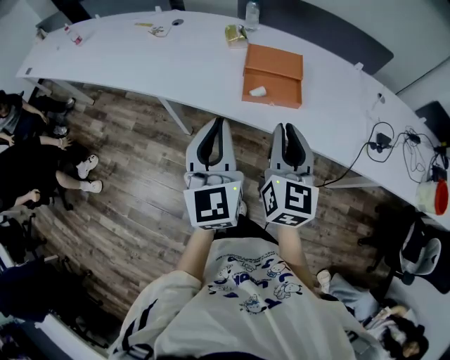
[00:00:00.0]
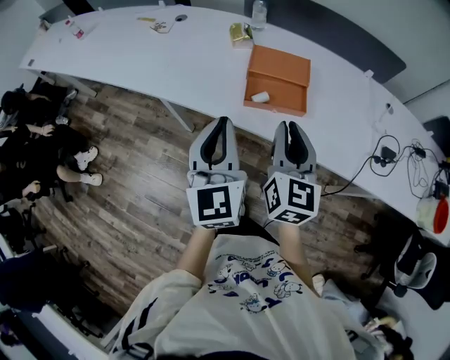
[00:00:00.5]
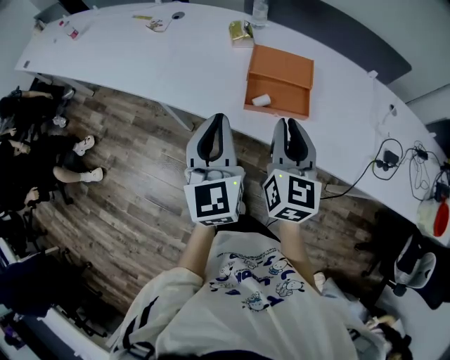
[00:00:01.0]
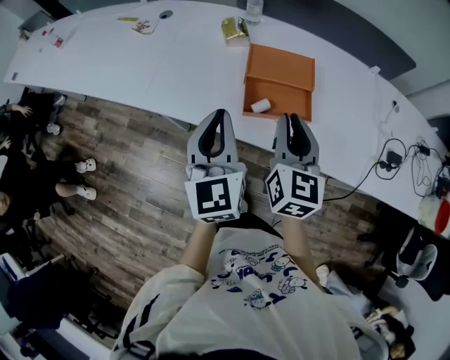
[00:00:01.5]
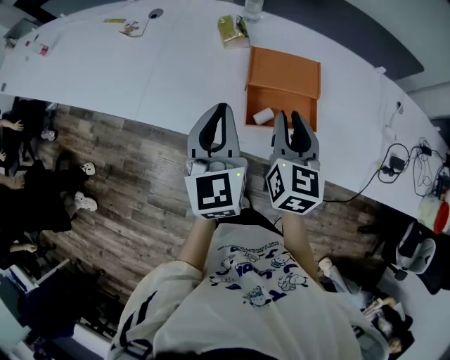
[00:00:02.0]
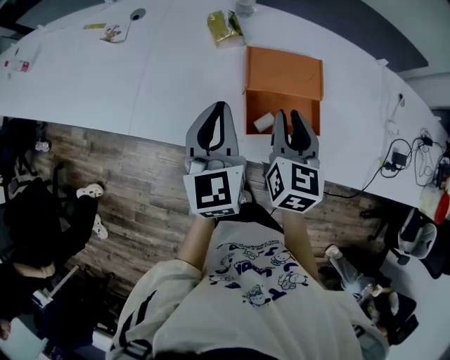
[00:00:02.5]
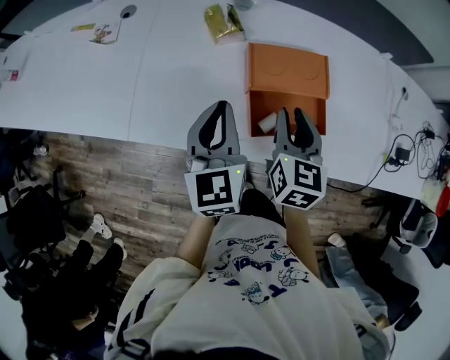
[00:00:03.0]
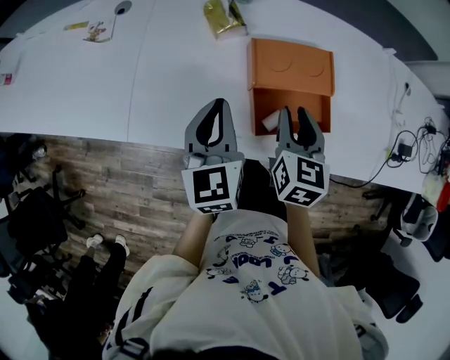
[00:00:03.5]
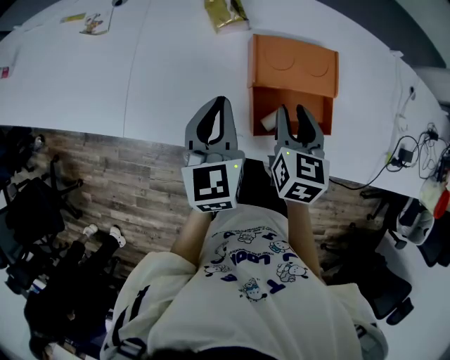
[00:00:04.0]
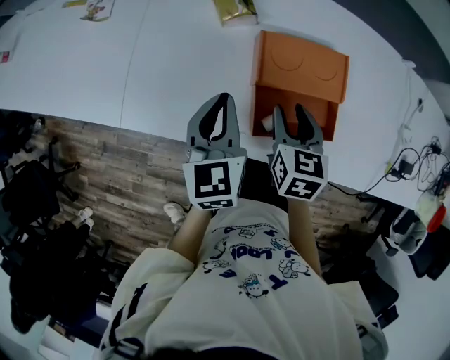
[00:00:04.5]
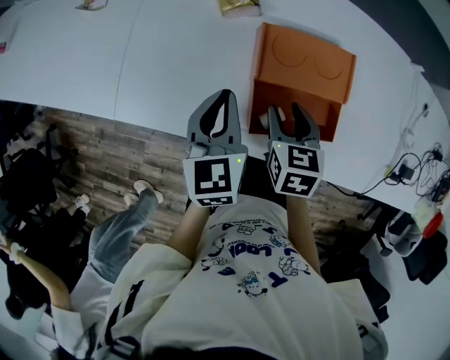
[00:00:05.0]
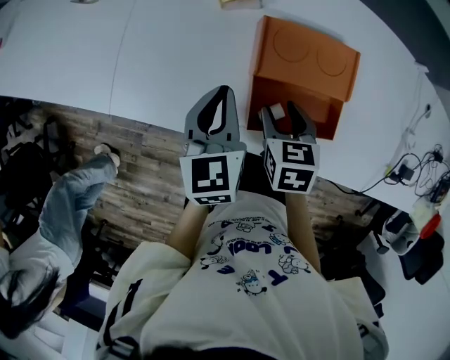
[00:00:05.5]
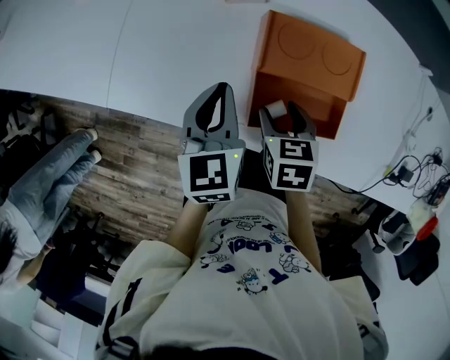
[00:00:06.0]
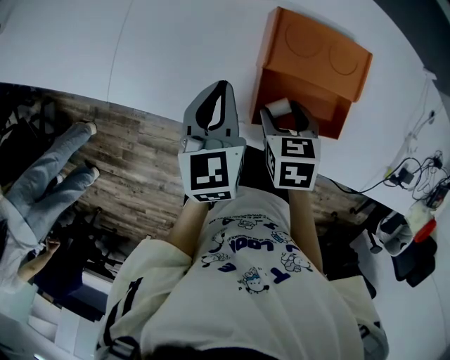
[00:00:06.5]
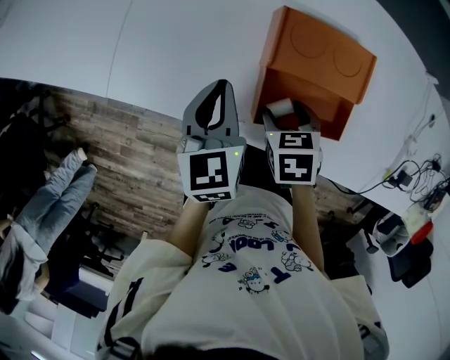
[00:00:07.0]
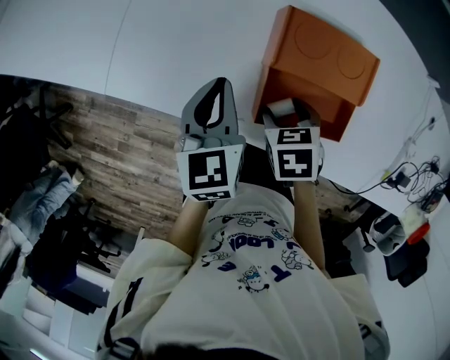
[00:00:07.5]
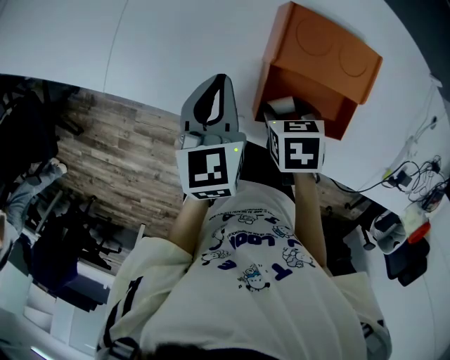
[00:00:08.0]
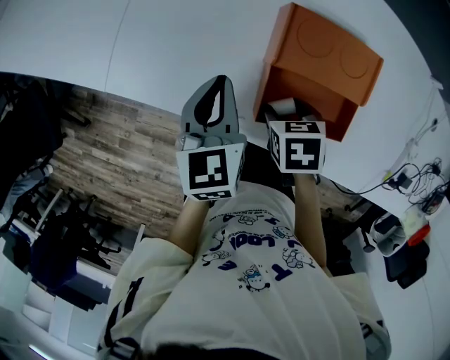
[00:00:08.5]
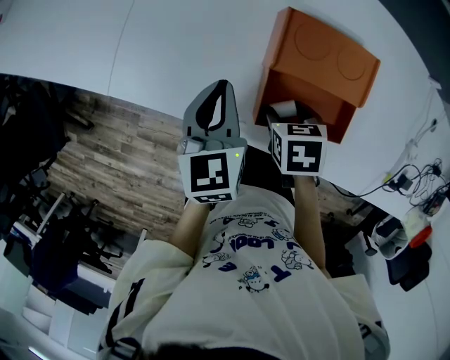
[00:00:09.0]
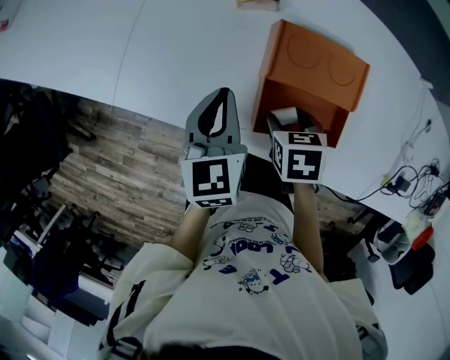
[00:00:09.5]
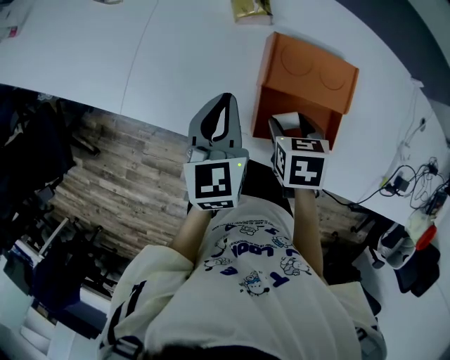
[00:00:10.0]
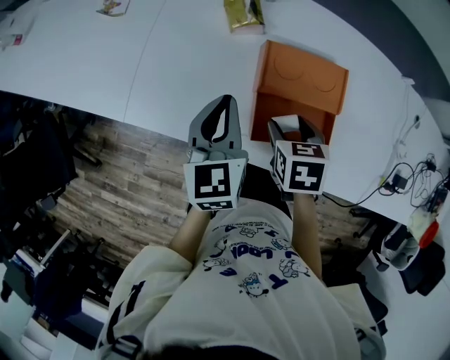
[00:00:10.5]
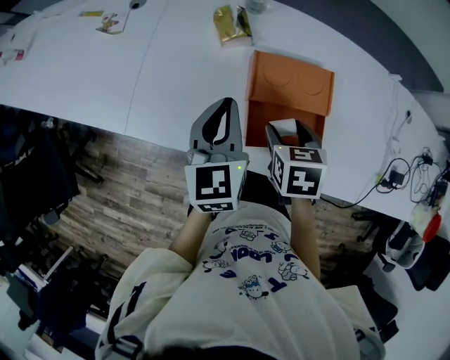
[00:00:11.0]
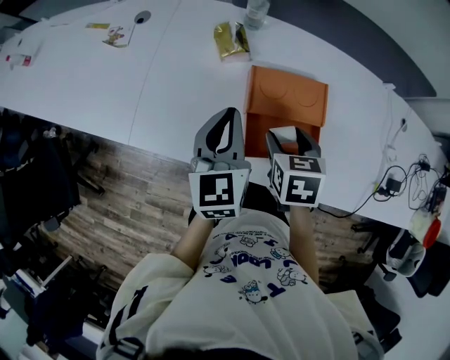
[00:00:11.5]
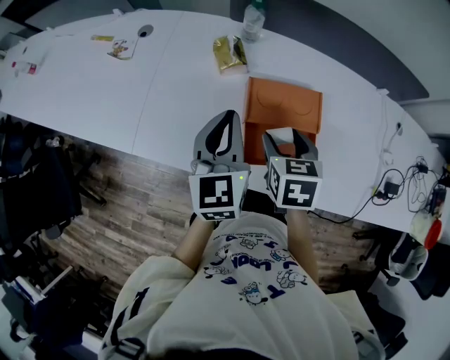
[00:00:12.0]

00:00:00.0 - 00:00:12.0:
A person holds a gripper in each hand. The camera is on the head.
00:00:00.0 - 00:00:02.0: Both grippers move forward, some 25 cm.
00:00:02.0 - 00:00:04.0: Both grippers travel together downward and forward, about 15 cm.
00:00:04.0 - 00:00:06.0: The left gripper goes about 5 cm downward, while the right gripper heads downward, covering roughly 10 cm, changes its angle by about 30 degrees, and opens.
00:00:06.0 - 00:00:08.0: The grippers move only a little.
00:00:08.0 - 00:00:10.0: The two grippers go about 5 cm upward.
00:00:10.0 - 00:00:12.0: Both grippers travel together upward, some 10 cm.

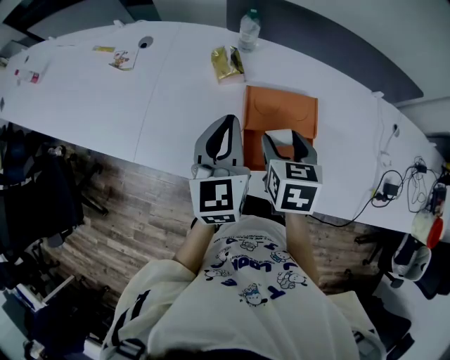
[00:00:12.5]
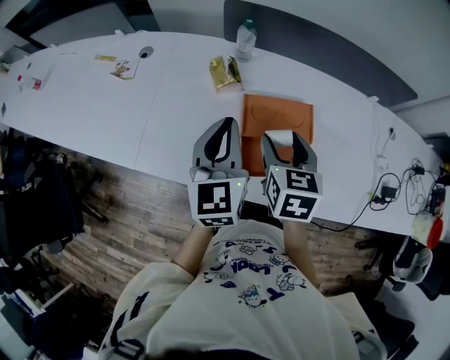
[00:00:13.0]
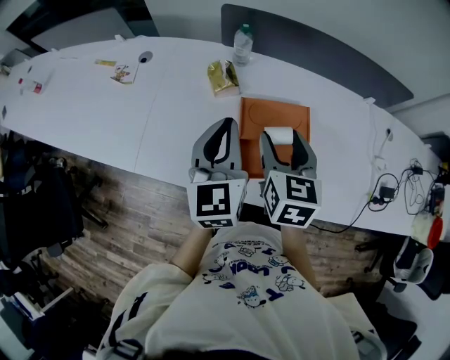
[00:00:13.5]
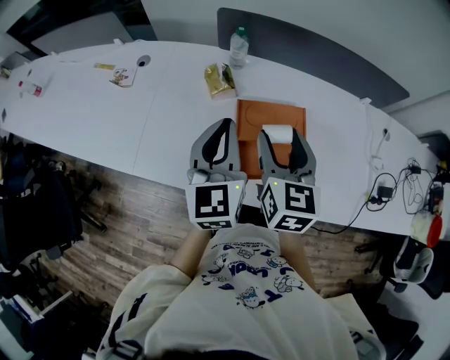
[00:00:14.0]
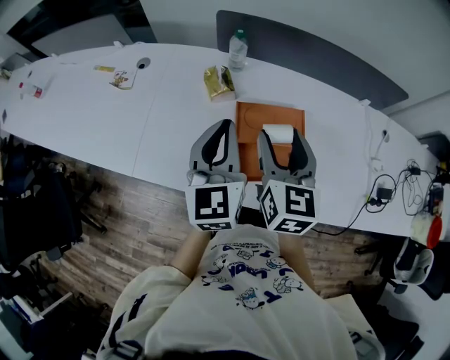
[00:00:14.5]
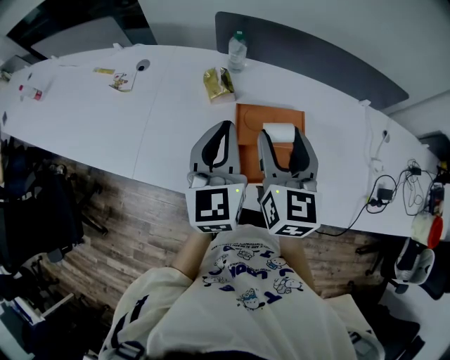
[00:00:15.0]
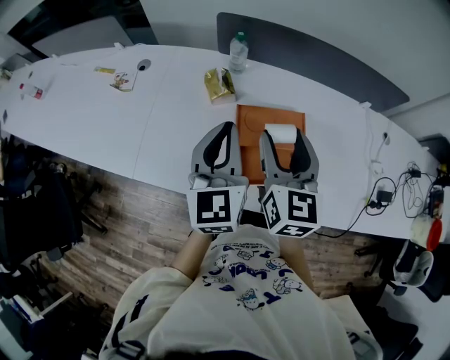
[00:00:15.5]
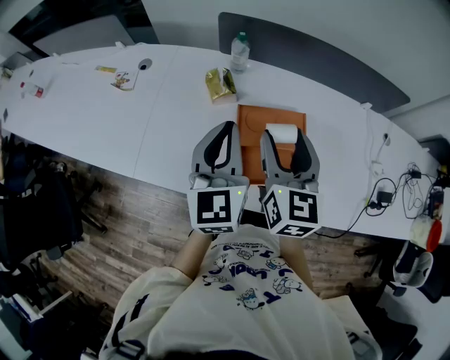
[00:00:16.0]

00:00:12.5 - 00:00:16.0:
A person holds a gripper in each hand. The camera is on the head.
00:00:12.5 - 00:00:14.5: The right gripper shifts about 10 cm upward, and swivels about 30 degrees, while the left gripper moves upward, some 5 cm.
00:00:14.5 - 00:00:16.0: The two grippers keep their place.

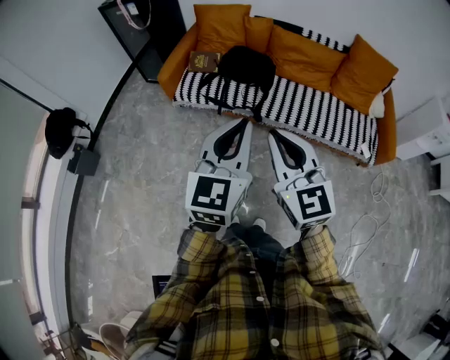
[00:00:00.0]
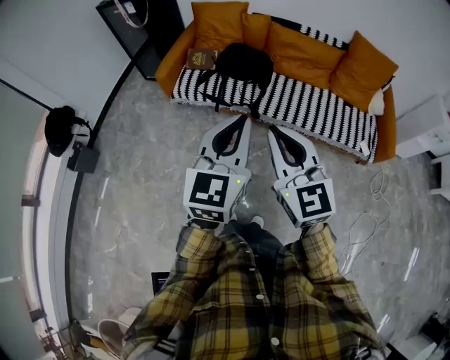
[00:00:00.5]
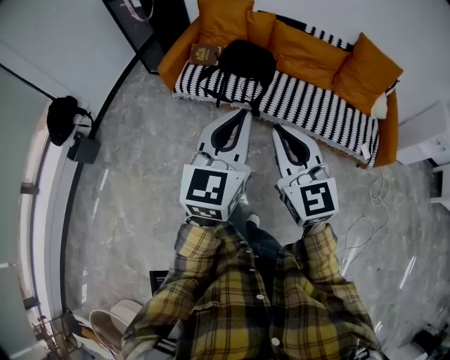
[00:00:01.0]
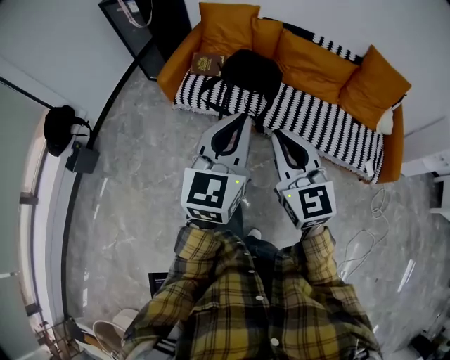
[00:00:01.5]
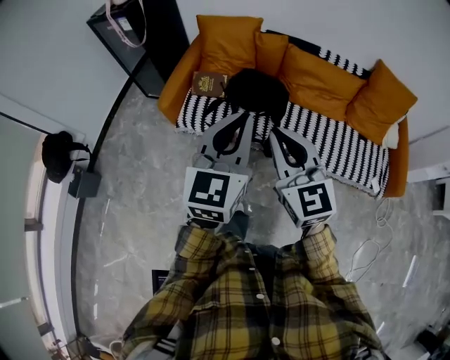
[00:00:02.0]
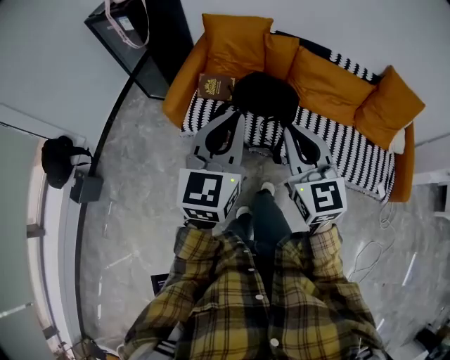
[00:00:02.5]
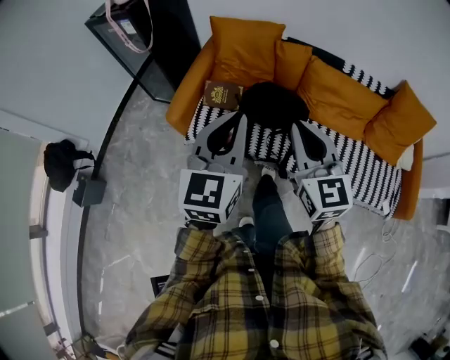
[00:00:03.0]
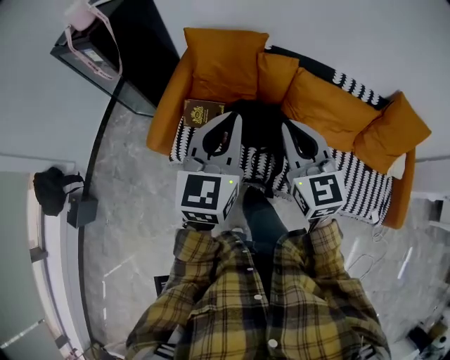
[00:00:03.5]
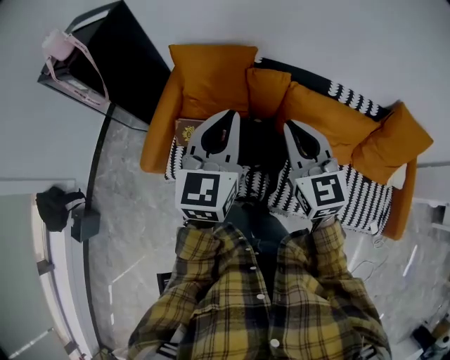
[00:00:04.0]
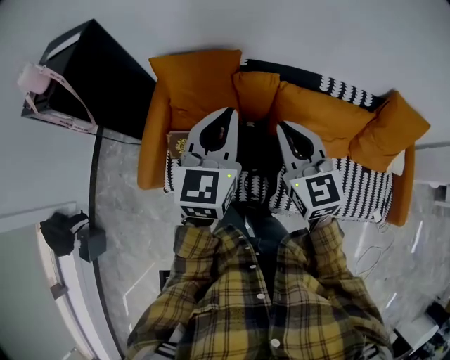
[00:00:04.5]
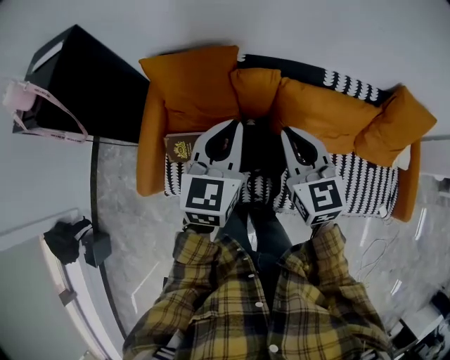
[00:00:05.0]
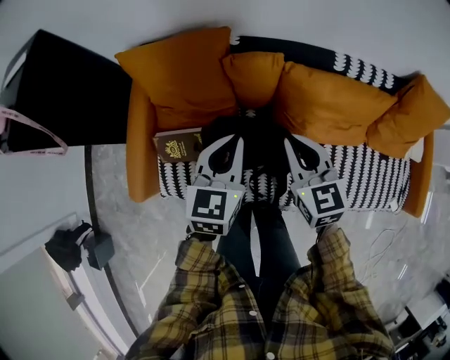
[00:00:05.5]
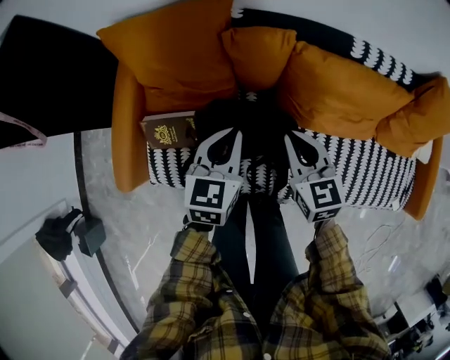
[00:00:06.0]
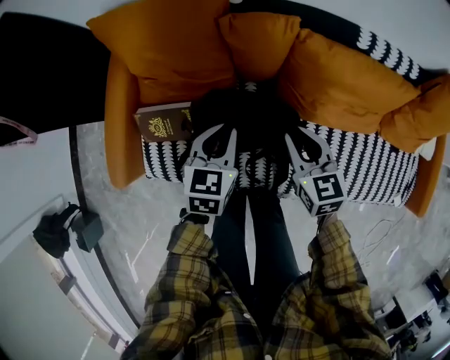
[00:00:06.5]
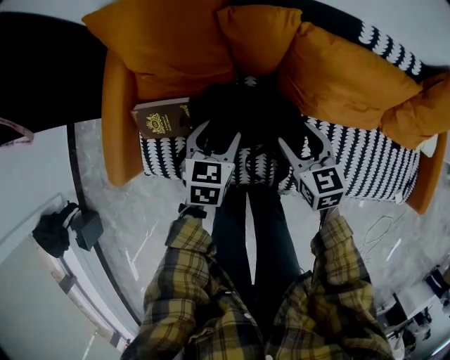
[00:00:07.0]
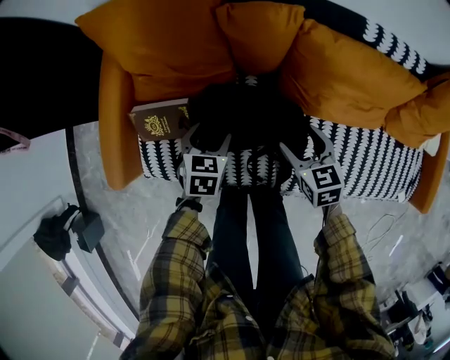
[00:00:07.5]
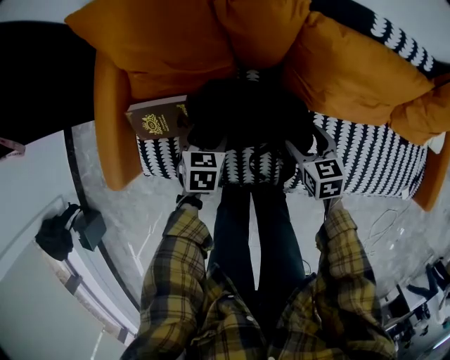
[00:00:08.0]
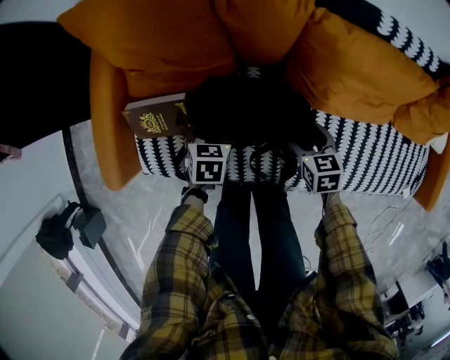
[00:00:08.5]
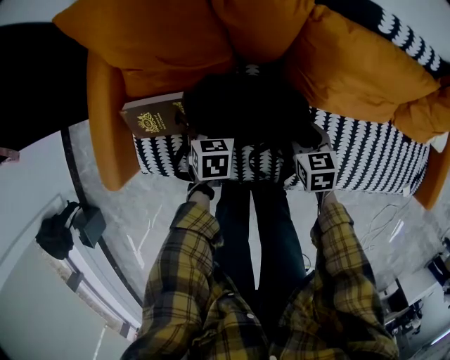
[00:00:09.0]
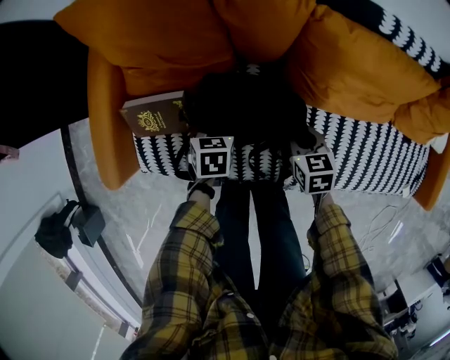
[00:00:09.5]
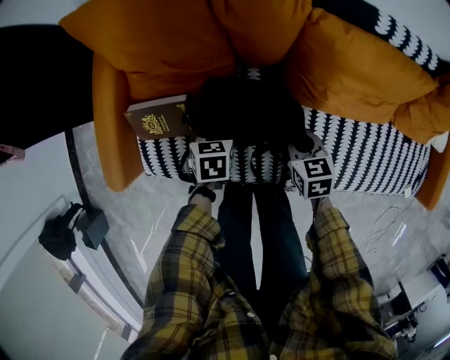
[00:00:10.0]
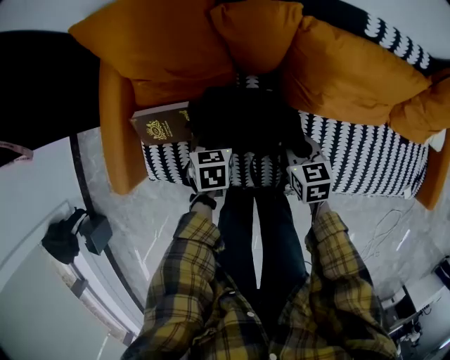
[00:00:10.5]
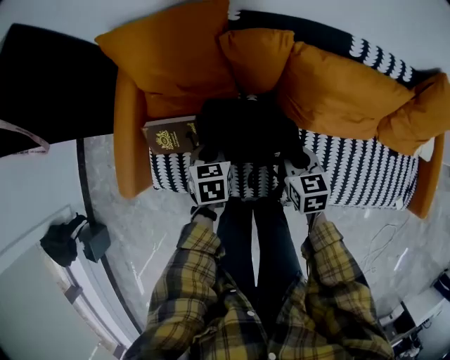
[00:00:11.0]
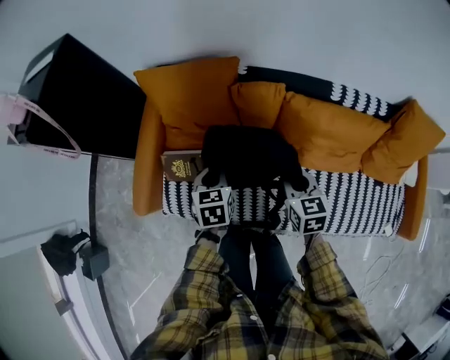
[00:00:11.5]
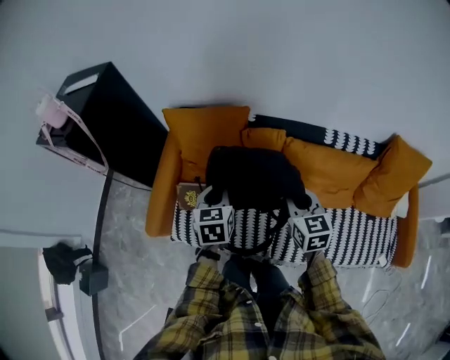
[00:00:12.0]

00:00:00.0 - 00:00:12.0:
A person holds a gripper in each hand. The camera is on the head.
00:00:00.0 - 00:00:02.0: The grippers both shift forward by roughly 25 cm.
00:00:02.0 - 00:00:04.0: The pair of grippers is taken forward, roughly 40 cm.
00:00:04.0 - 00:00:06.0: The two grippers go some 30 cm downward. The right gripper swivels about 20 degrees; the left gripper rotates some 30 degrees.
00:00:06.0 - 00:00:08.0: The grippers both shift downward by roughly 20 cm. The left gripper rotates some 30 degrees, and opens its fingers, while the right gripper swivels some 20 degrees, and opens.
00:00:08.0 - 00:00:10.0: The right gripper closes up. The left gripper closes its fingers.
00:00:10.0 - 00:00:12.0: Both grippers travel together upward, approximately 35 cm. The left gripper rotates about 30 degrees; the right gripper rotates roughly 30 degrees.
